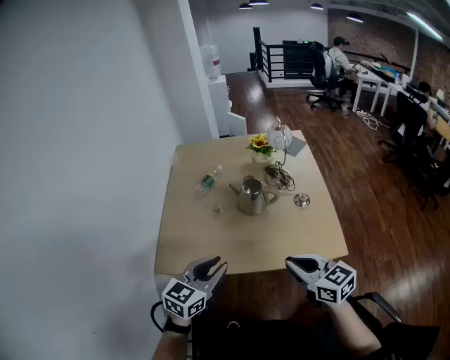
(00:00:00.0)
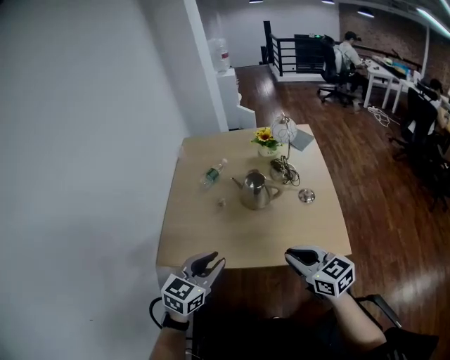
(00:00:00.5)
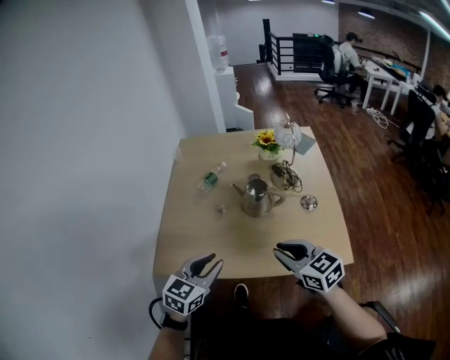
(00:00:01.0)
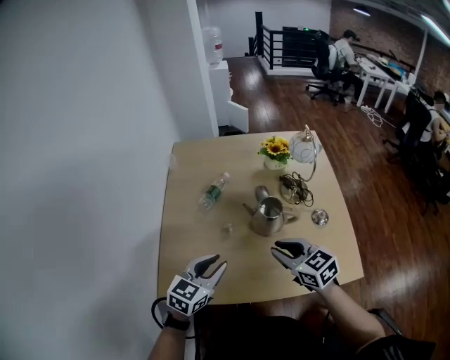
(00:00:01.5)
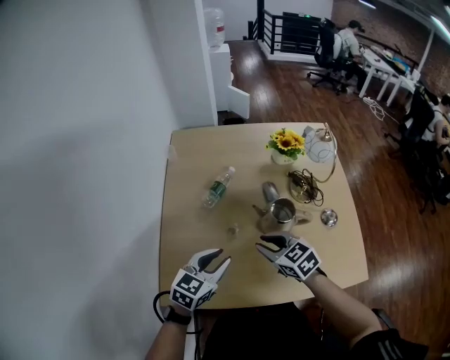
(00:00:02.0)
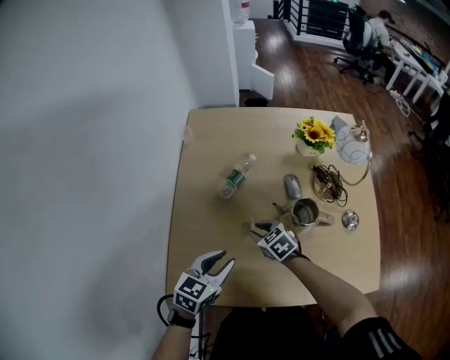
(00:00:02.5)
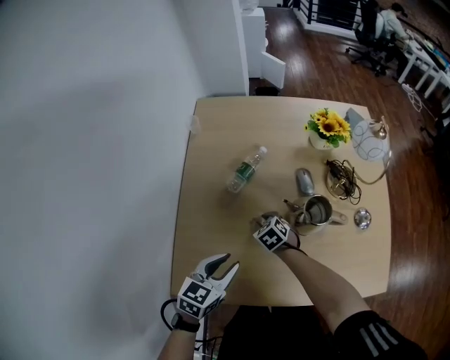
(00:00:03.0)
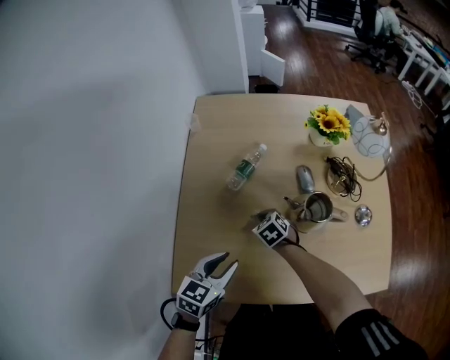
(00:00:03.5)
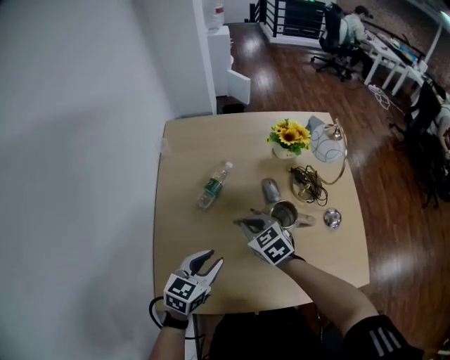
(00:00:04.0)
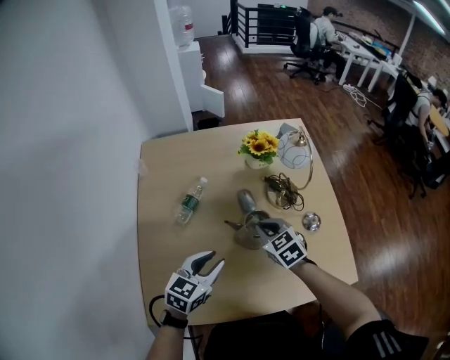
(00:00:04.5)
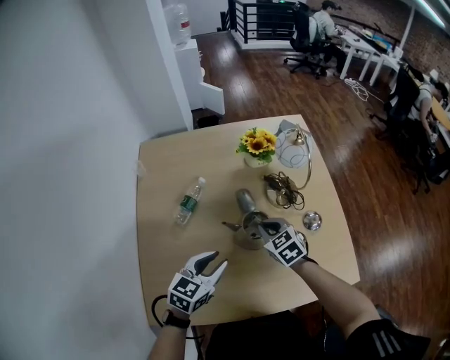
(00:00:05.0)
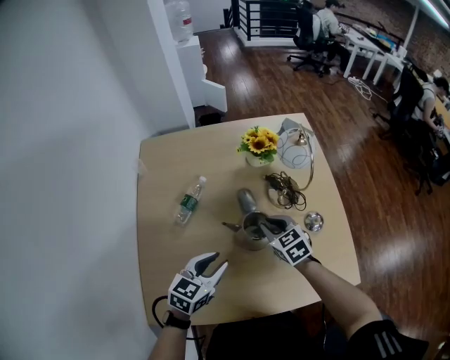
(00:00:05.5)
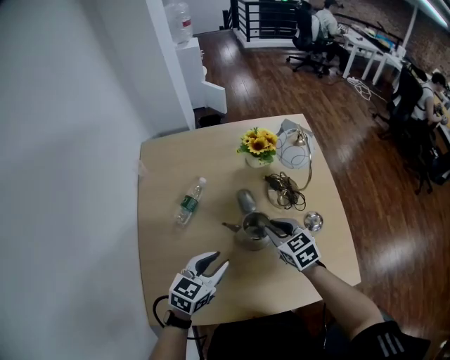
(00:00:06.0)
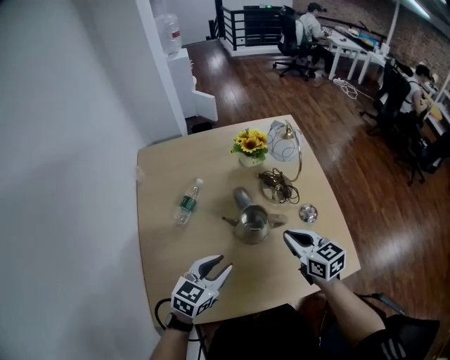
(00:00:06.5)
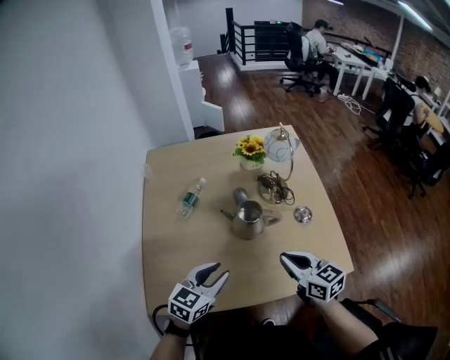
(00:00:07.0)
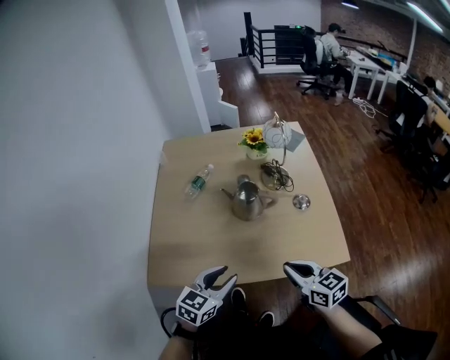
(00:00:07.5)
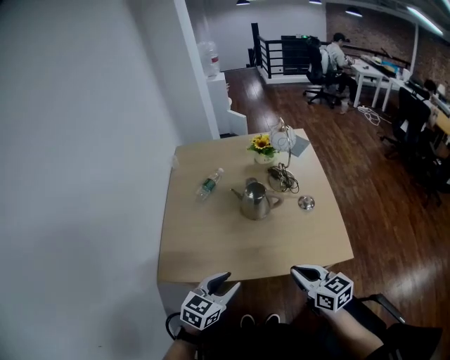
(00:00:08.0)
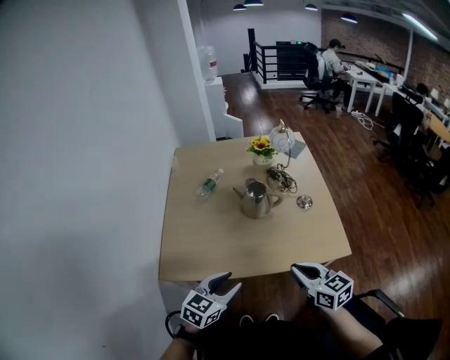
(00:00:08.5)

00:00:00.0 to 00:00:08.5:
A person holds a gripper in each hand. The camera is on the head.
00:00:00.0 to 00:00:02.0: The right gripper travels forward, to the left and downward by some 35 cm, turns by some 20 degrees, and opens, while the left gripper heads forward and downward, covering some 30 cm.
00:00:02.0 to 00:00:04.0: The right gripper is displaced forward by about 10 cm, goes downward and returns, about 20 cm each way, and closes its fingers.
00:00:04.0 to 00:00:06.5: The left gripper goes about 10 cm to the right. The right gripper shifts roughly 20 cm to the right, and changes its angle by some 30 degrees.
00:00:06.5 to 00:00:08.5: Both grippers travel together backward, some 30 cm.

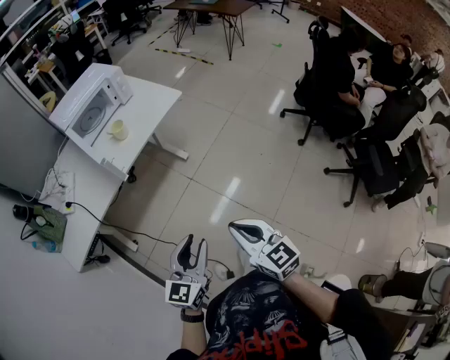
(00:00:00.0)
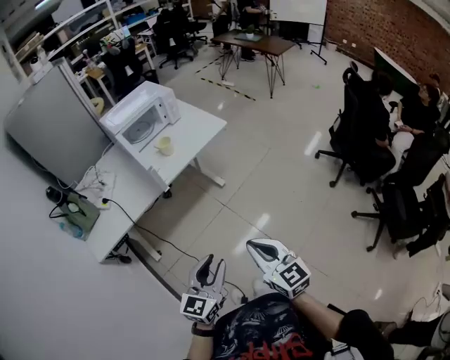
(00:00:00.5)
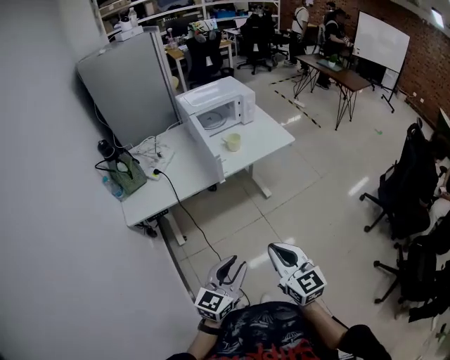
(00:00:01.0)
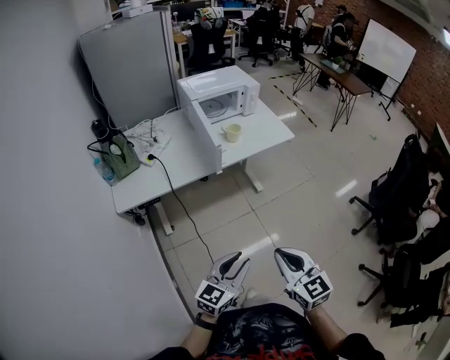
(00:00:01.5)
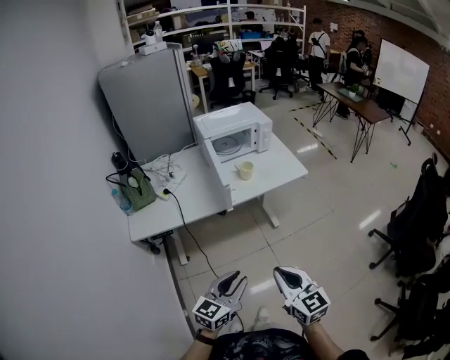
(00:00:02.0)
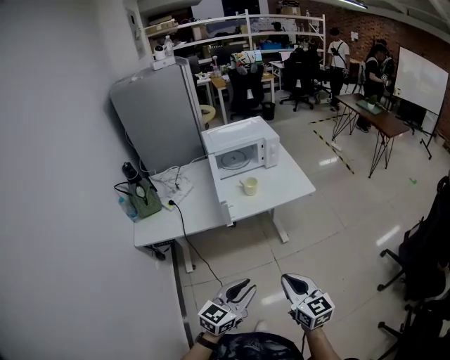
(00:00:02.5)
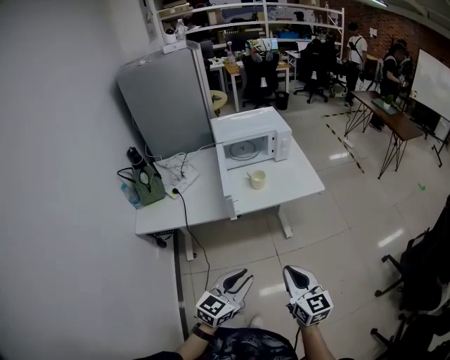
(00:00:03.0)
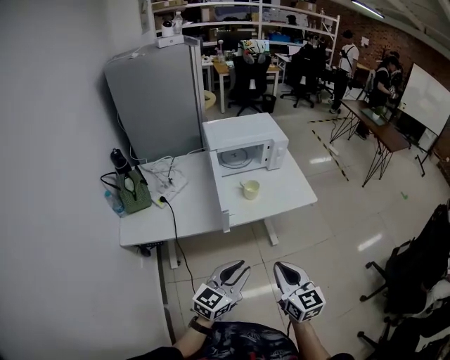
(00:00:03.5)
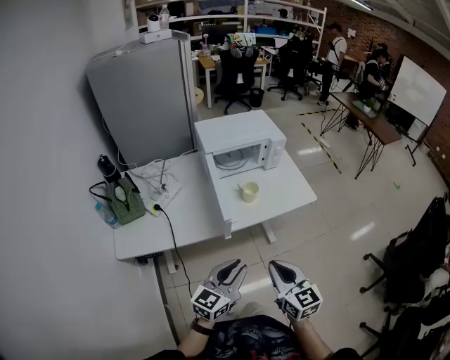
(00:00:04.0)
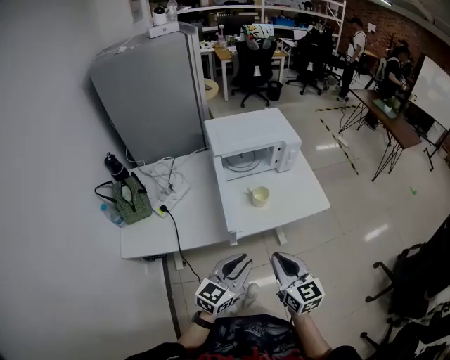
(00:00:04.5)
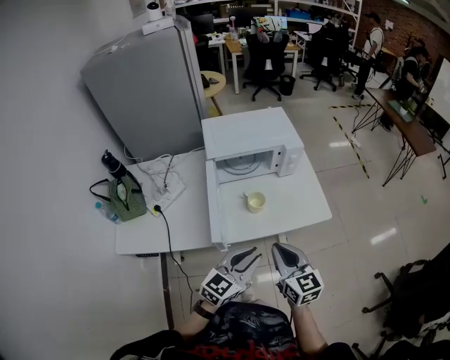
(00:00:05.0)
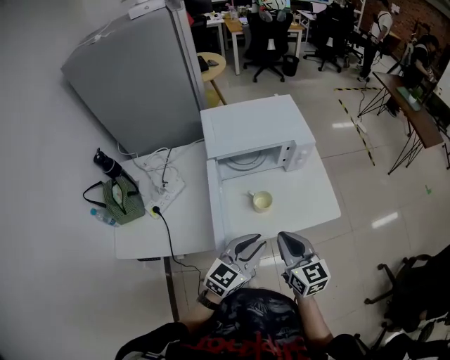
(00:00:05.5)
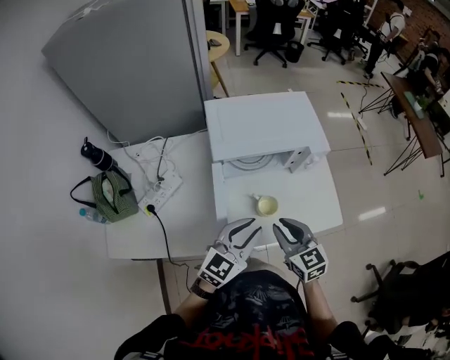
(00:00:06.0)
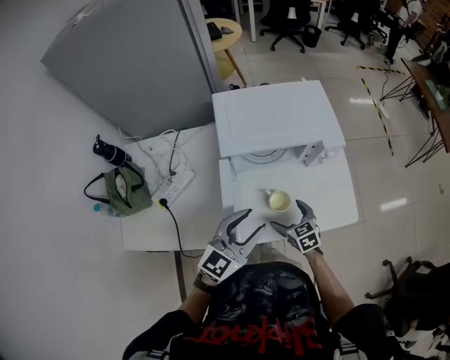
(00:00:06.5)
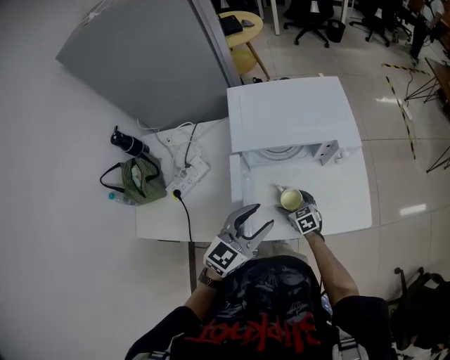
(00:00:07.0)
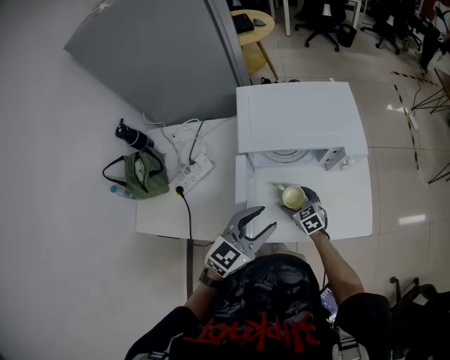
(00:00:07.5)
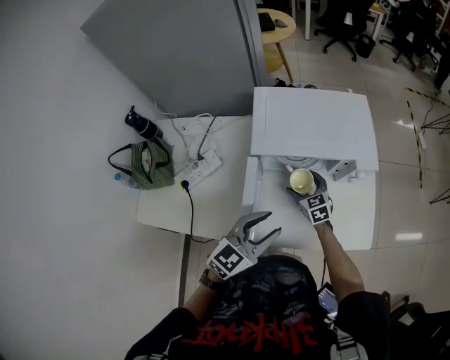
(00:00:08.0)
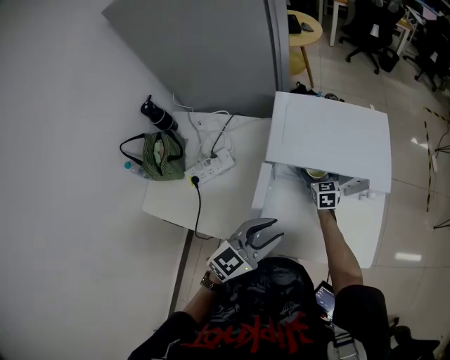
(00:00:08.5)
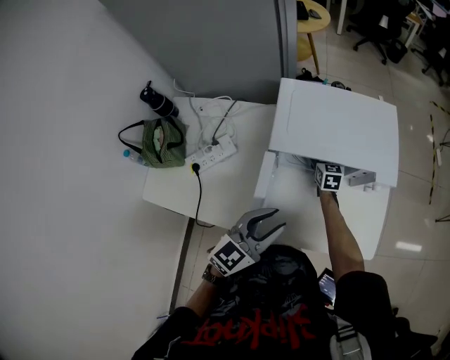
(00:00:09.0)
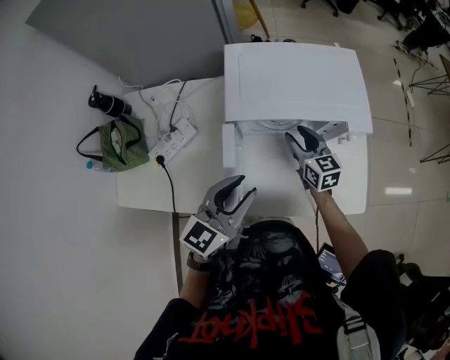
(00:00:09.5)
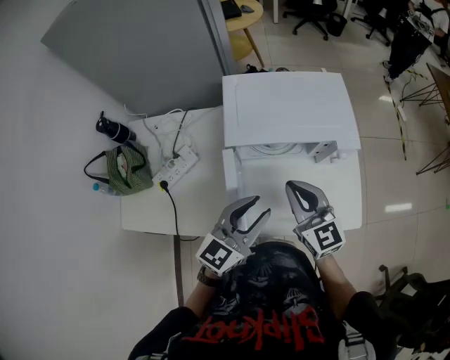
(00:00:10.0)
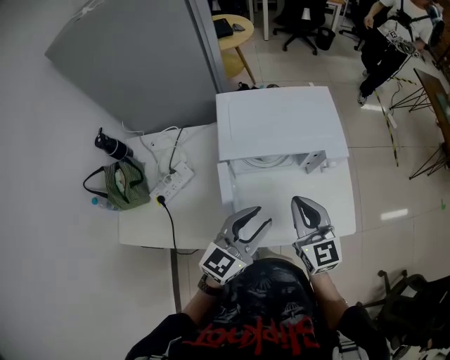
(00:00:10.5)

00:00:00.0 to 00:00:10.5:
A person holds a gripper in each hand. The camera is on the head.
00:00:00.0 to 00:00:02.0: Both grippers move to the left, roughly 10 cm. The right gripper rotates about 20 degrees.
00:00:02.0 to 00:00:04.0: Both grippers move forward, approximately 25 cm.
00:00:04.0 to 00:00:06.5: The right gripper travels forward and downward by approximately 50 cm, points its fingers approximately 30 degrees further downward, and opens; the left gripper travels forward by approximately 35 cm, and opens.
00:00:06.5 to 00:00:08.5: The right gripper travels forward by about 25 cm.
00:00:08.5 to 00:00:10.5: The right gripper goes approximately 35 cm upward and backward, swivels some 20 degrees, and closes its fingers. Meanwhile the left gripper travels upward by approximately 5 cm.

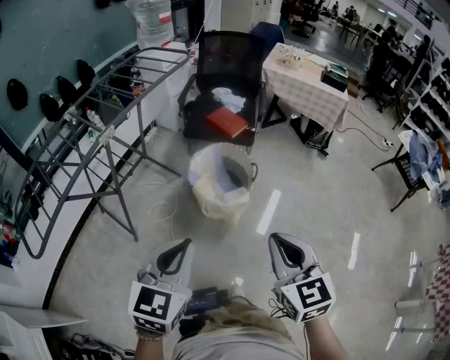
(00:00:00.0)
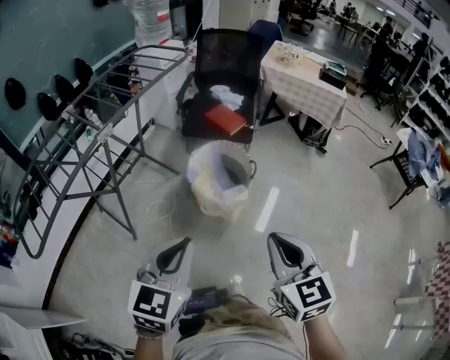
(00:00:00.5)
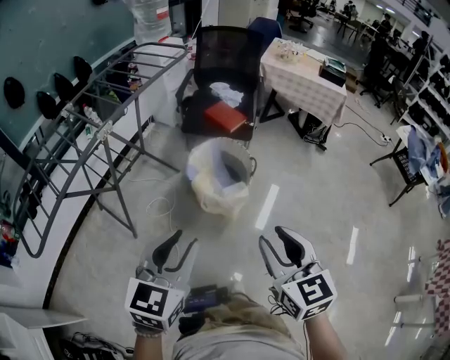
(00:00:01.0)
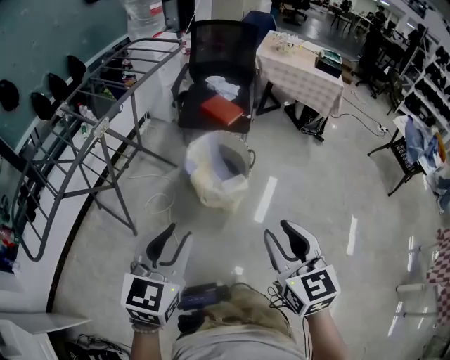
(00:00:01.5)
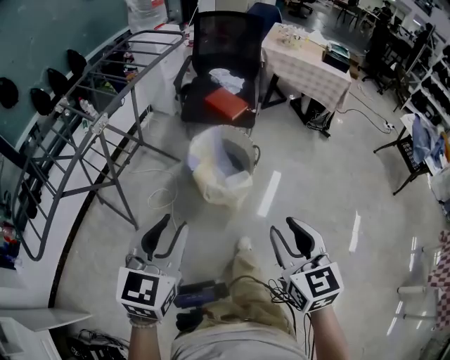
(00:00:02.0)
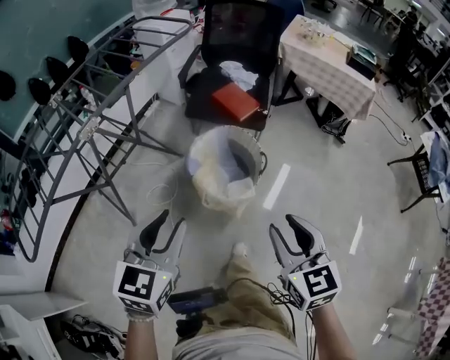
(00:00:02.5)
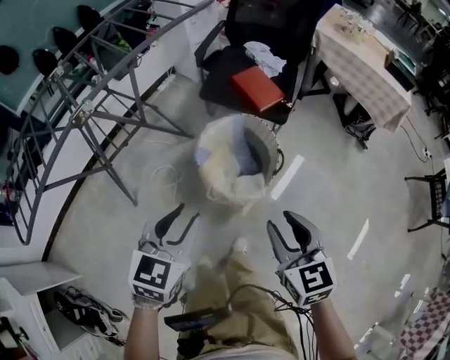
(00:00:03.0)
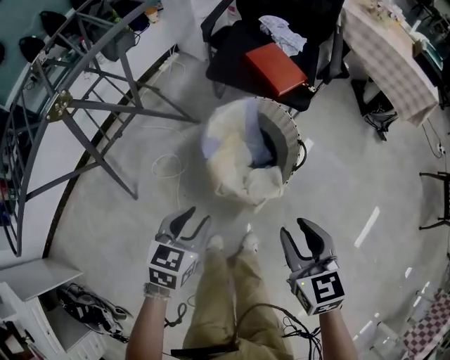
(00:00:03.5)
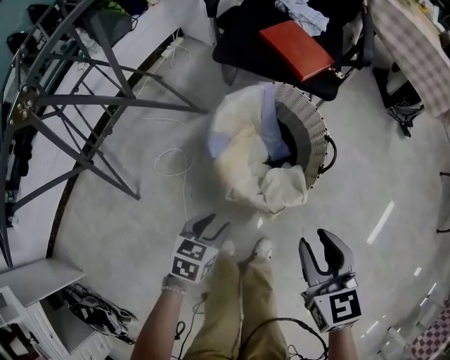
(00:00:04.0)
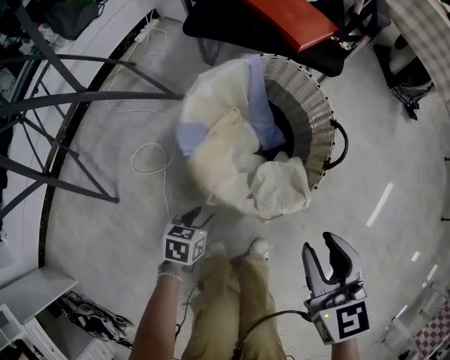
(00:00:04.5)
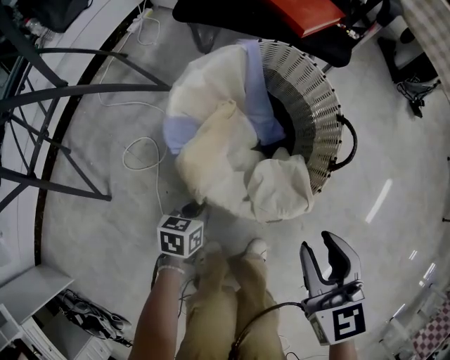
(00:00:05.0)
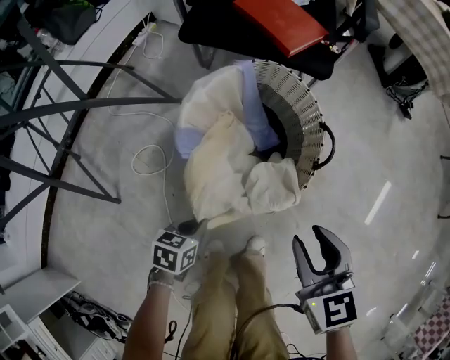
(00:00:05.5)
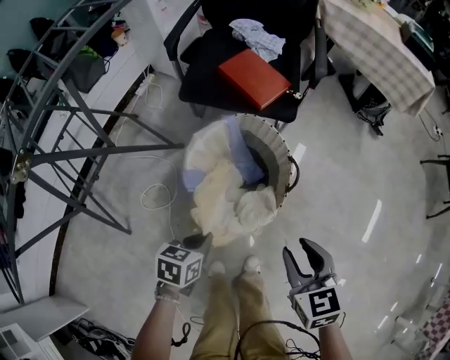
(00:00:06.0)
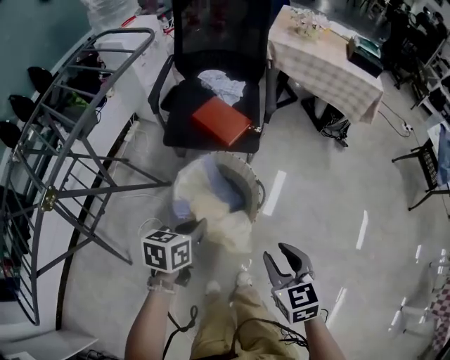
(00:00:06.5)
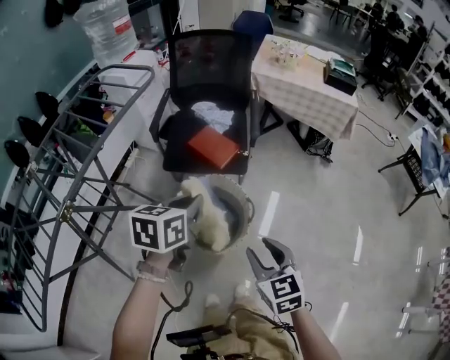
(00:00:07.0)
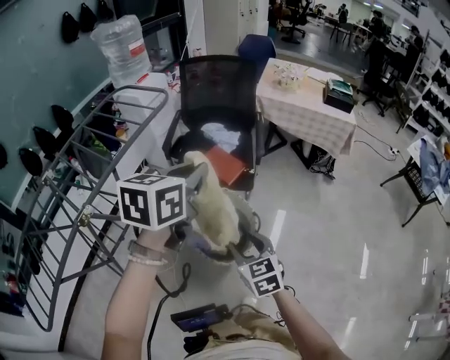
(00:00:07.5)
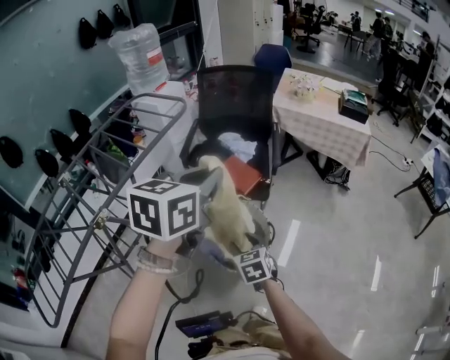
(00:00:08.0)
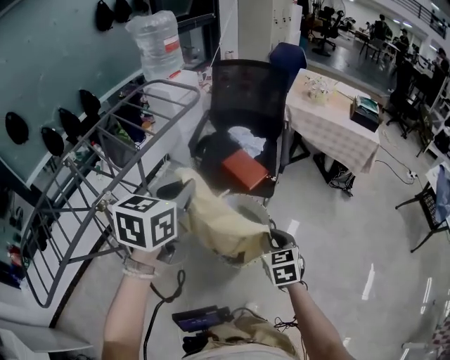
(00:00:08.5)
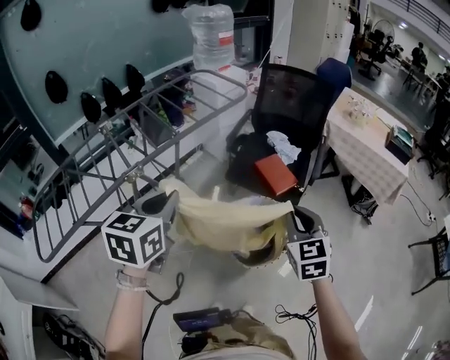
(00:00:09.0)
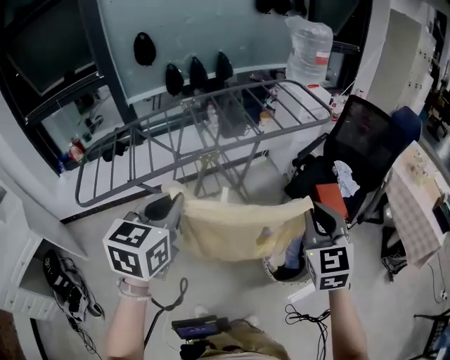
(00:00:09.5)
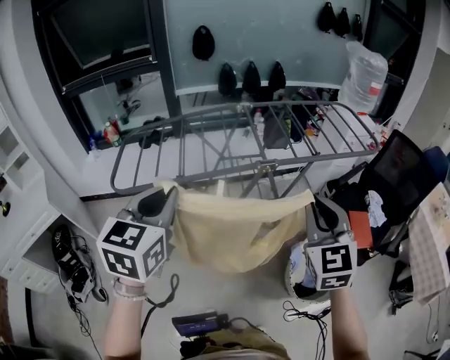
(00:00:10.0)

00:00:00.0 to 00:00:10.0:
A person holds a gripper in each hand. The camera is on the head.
00:00:00.0 to 00:00:02.0: The left gripper ends up roughly 5 cm from where it was, and opens its fingers. The right gripper opens its fingers.
00:00:02.0 to 00:00:04.0: Both grippers move downward and forward, roughly 50 cm. The right gripper rotates some 20 degrees. The left gripper angles its fingers downward, by roughly 30 degrees.
00:00:04.0 to 00:00:06.0: The left gripper heads forward, covering some 5 cm, goes downward and returns, approximately 20 cm each way, and closes its fingers, while the right gripper reaches some 15 cm downward, then returns.
00:00:06.0 to 00:00:08.0: The right gripper moves upward and to the left, approximately 20 cm. Meanwhile the left gripper moves upward, about 60 cm, and points its fingers about 30 degrees further upward.
00:00:08.0 to 00:00:10.0: The left gripper moves roughly 60 cm, and turns by roughly 70 degrees. The right gripper shifts by some 40 cm, points its fingers about 30 degrees further upward, and closes up.
